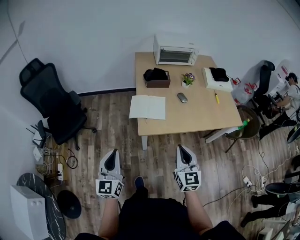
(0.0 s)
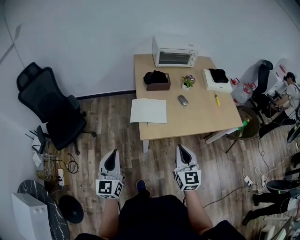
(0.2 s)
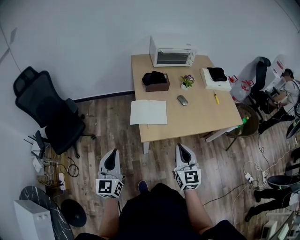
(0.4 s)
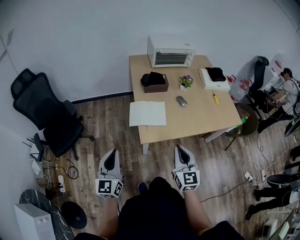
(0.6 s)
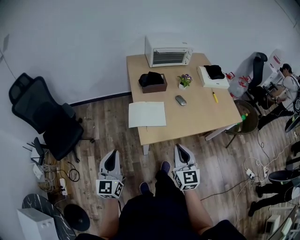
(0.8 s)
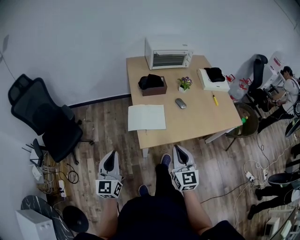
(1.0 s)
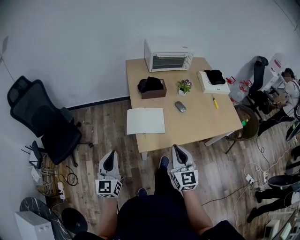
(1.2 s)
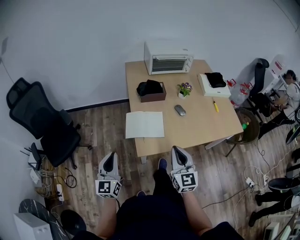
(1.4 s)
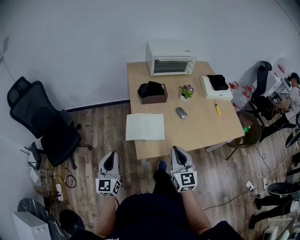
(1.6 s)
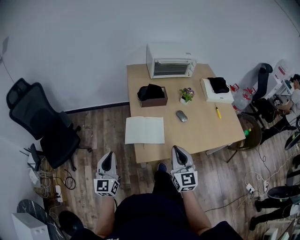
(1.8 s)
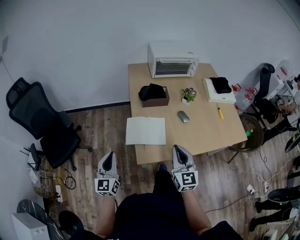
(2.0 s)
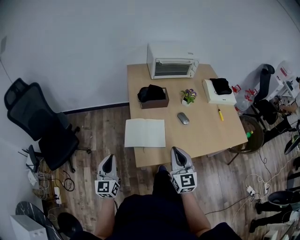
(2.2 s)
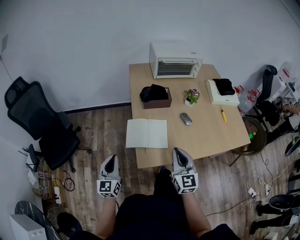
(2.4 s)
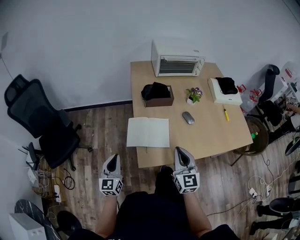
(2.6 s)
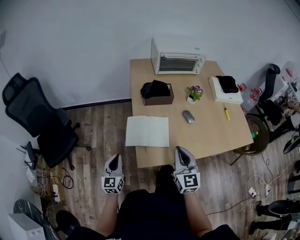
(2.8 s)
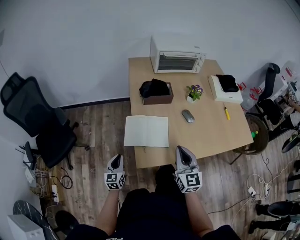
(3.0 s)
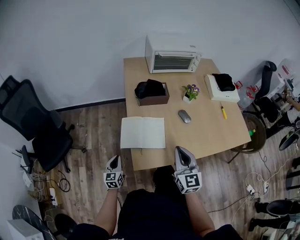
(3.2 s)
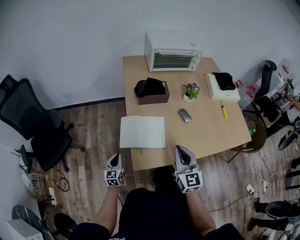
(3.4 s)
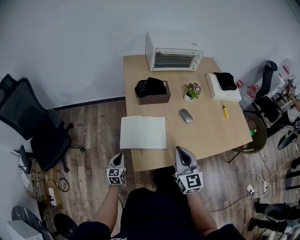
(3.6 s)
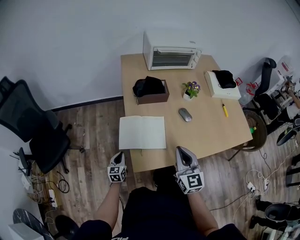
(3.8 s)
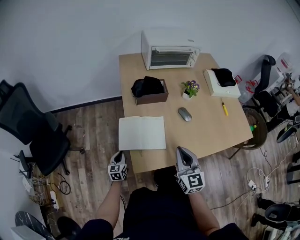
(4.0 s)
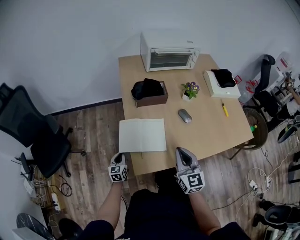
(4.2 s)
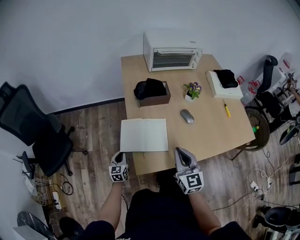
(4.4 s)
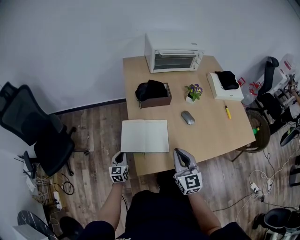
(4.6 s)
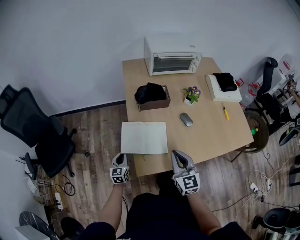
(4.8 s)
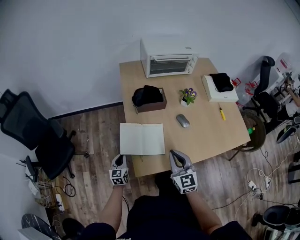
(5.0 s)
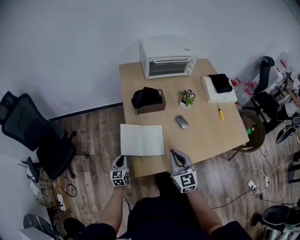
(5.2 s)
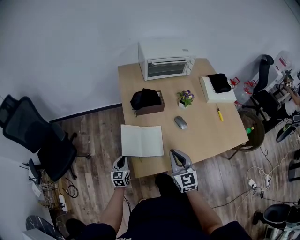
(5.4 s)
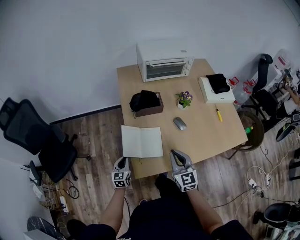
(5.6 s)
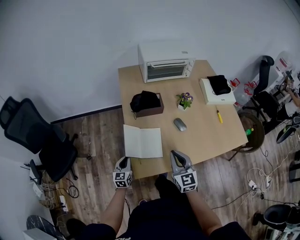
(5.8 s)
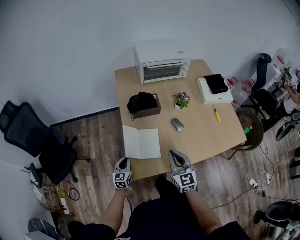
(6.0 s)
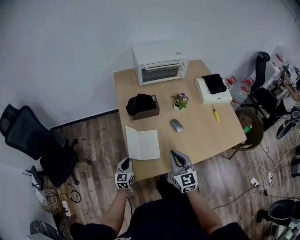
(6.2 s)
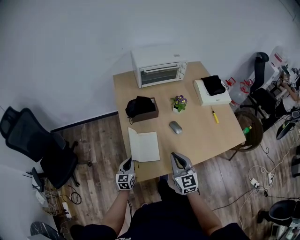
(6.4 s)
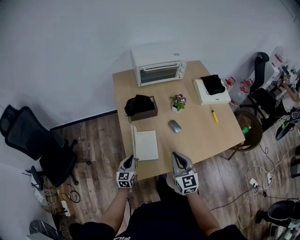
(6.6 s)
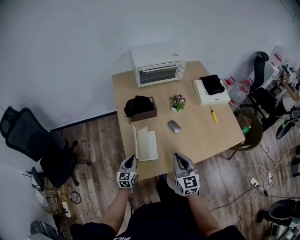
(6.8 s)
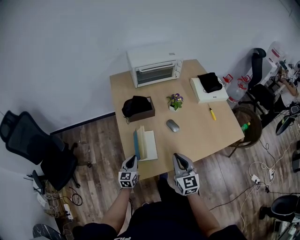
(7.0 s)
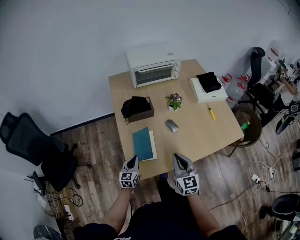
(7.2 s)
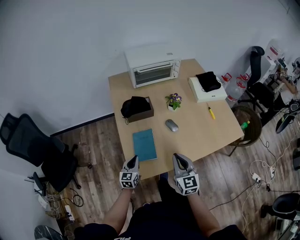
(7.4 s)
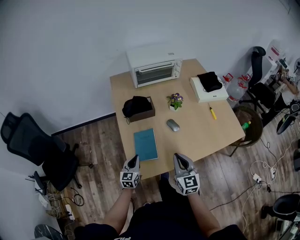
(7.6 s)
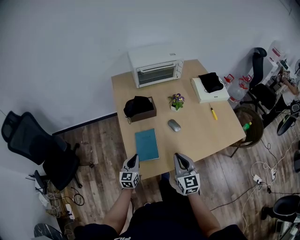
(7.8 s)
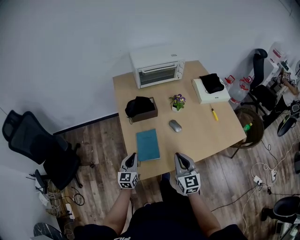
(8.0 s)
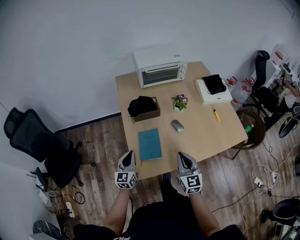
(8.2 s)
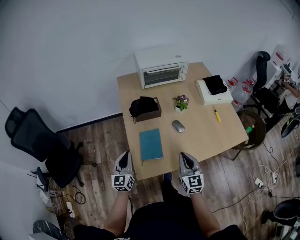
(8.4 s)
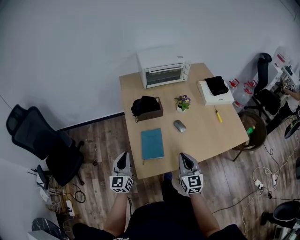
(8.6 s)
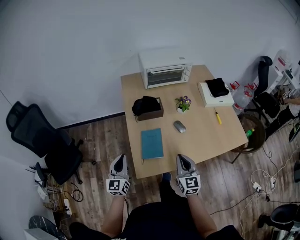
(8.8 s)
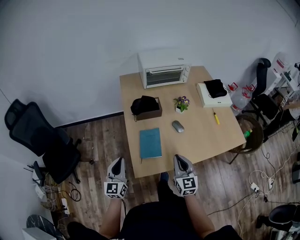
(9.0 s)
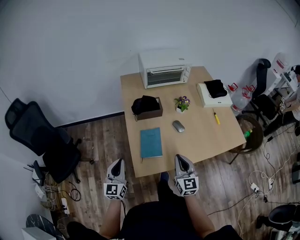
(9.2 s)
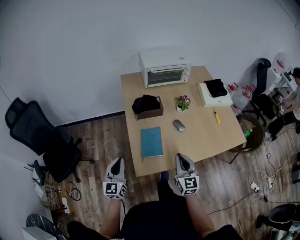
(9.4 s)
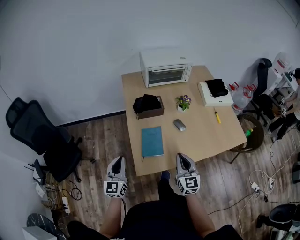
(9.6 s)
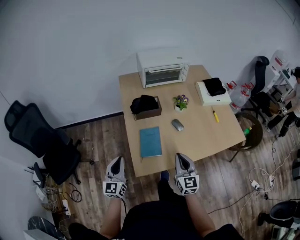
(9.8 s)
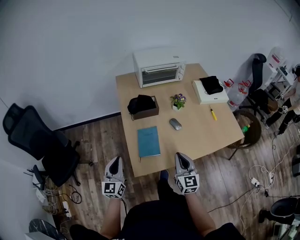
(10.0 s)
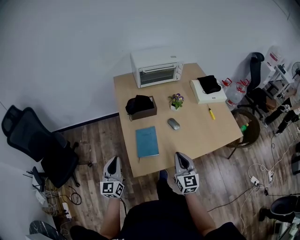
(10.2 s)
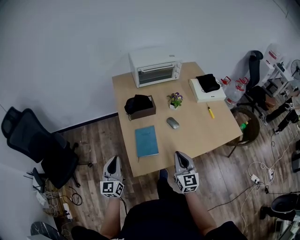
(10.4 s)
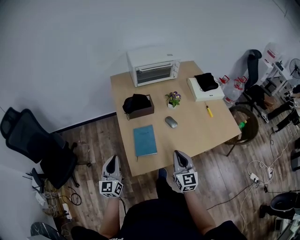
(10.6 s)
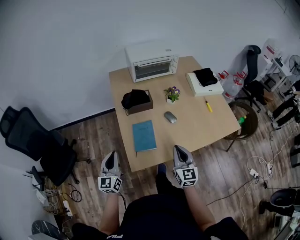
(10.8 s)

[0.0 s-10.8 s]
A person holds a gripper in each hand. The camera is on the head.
0.0 to 1.6 s: The grippers both shift forward by roughly 15 cm.
1.6 to 3.0 s: The right gripper goes about 10 cm forward and downward; the left gripper shifts about 25 cm downward.
3.0 to 4.6 s: The left gripper is displaced forward and downward by roughly 10 cm.
4.6 to 6.2 s: The left gripper travels upward and to the right by roughly 15 cm. Meanwhile the right gripper moves upward, some 5 cm.
6.2 to 7.8 s: The left gripper heads to the right, covering approximately 5 cm.
7.8 to 9.2 s: The left gripper heads upward, to the left and backward, covering about 20 cm.
9.2 to 10.8 s: The grippers stay close to where they were, moving slightly.

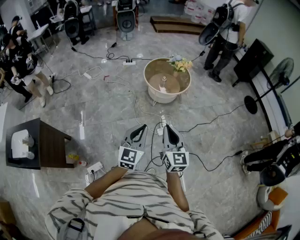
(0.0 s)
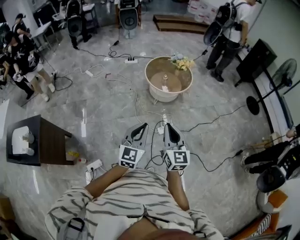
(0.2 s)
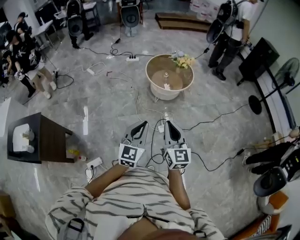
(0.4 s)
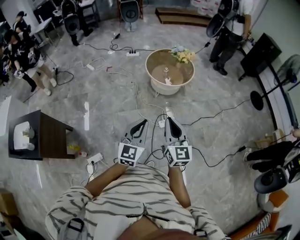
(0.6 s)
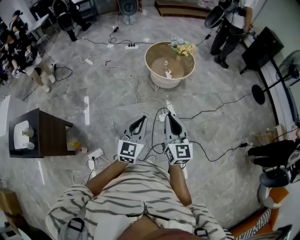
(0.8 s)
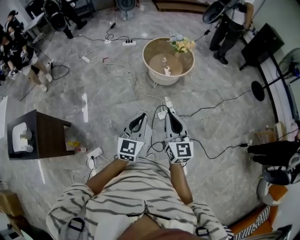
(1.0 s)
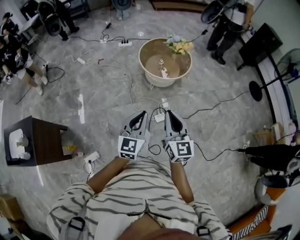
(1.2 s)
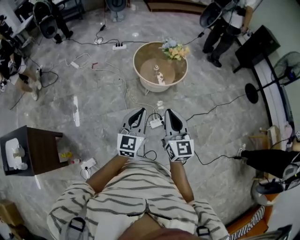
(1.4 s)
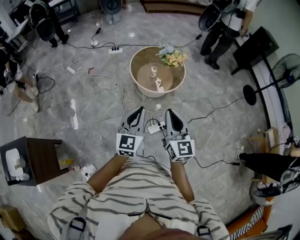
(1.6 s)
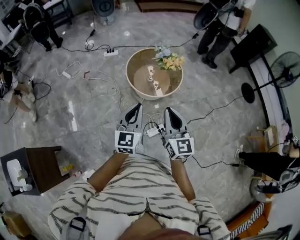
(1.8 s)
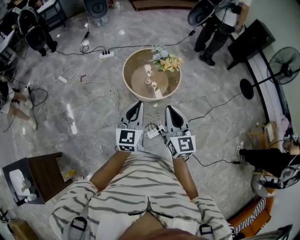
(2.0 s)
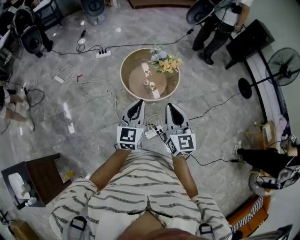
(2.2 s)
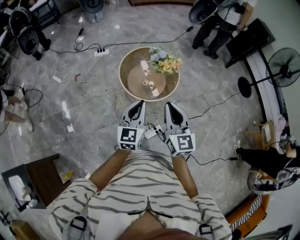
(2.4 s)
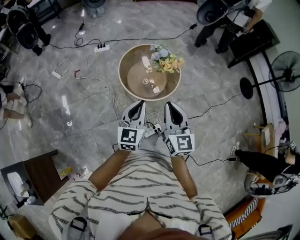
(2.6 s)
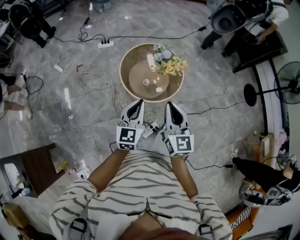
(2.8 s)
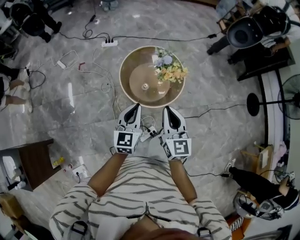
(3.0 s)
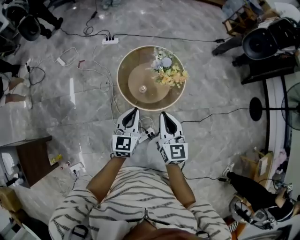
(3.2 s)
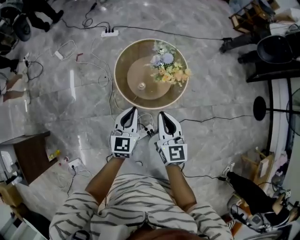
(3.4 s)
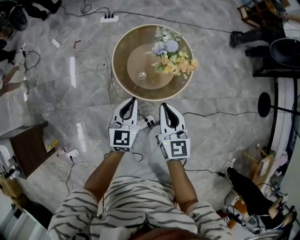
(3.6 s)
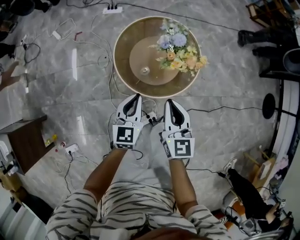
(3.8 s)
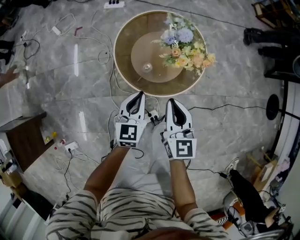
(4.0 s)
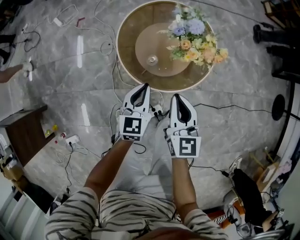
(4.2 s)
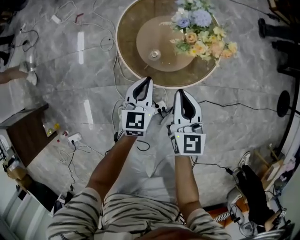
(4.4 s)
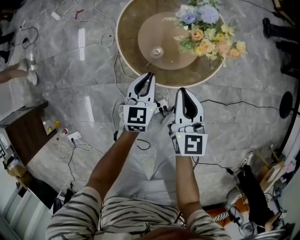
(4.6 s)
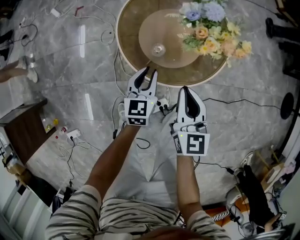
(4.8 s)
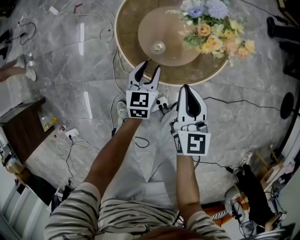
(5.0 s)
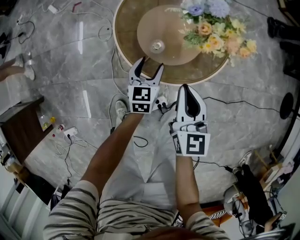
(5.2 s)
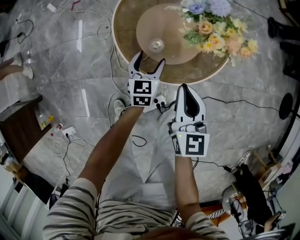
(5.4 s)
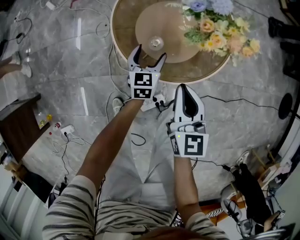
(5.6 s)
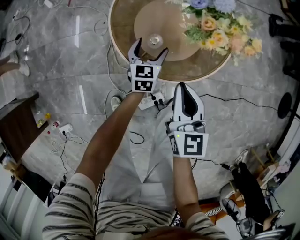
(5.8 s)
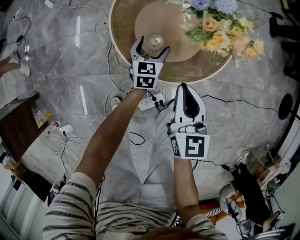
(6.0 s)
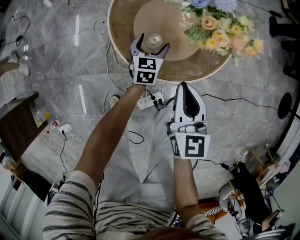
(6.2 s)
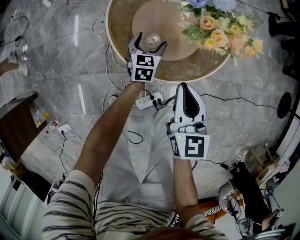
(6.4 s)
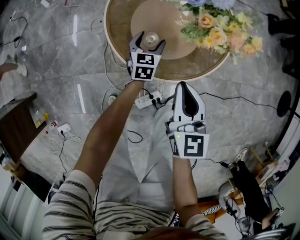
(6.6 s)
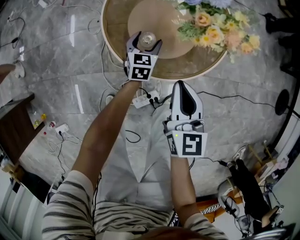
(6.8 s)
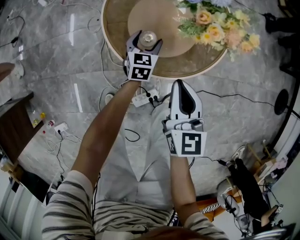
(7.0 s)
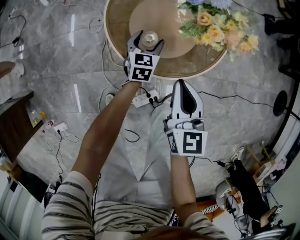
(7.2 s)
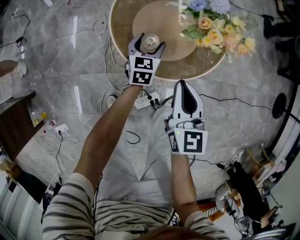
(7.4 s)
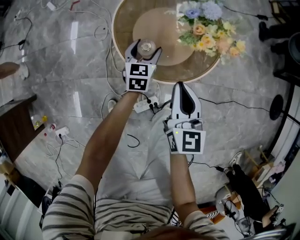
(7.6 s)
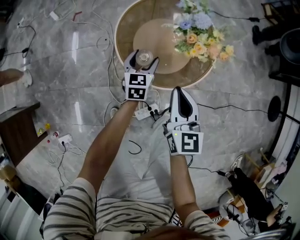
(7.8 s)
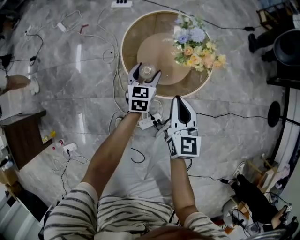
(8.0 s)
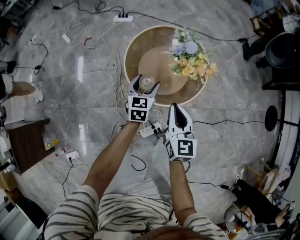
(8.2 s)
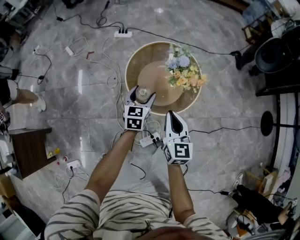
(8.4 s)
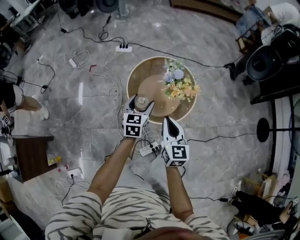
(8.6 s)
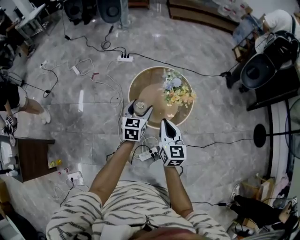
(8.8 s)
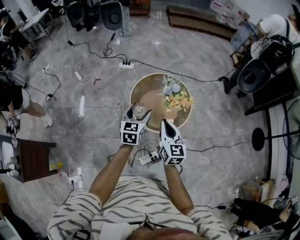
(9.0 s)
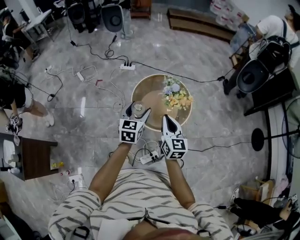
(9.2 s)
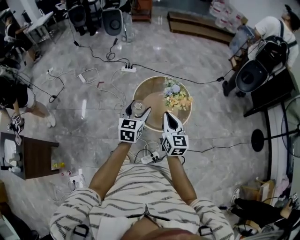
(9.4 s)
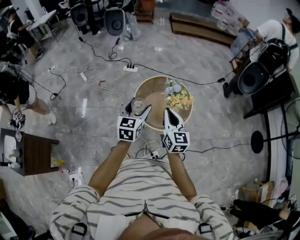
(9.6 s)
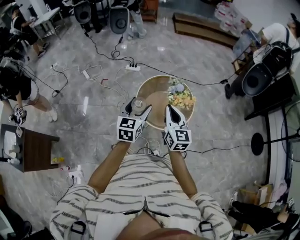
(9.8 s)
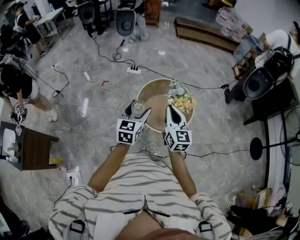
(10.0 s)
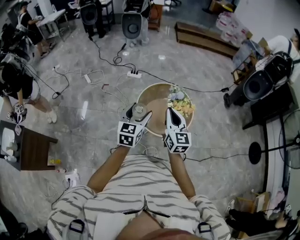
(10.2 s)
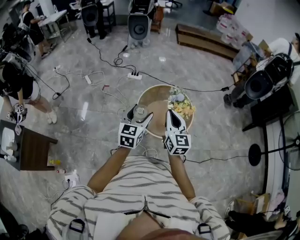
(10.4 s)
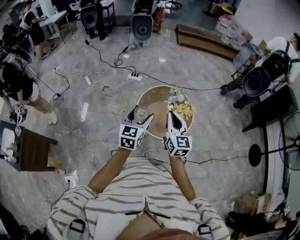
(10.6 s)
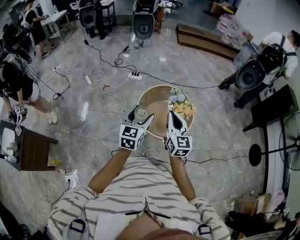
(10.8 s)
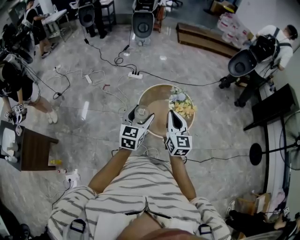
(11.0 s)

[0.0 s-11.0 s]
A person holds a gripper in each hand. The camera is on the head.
0.0 to 1.6 s: The two grippers go about 25 cm forward.
1.6 to 3.2 s: The two grippers go about 30 cm forward.
3.2 to 4.8 s: The grippers both shift downward by roughly 30 cm.
4.8 to 6.2 s: The left gripper heads downward and forward, covering about 15 cm, and opens.
6.2 to 7.8 s: The right gripper travels upward by about 10 cm, while the left gripper moves upward, about 15 cm.
7.8 to 9.4 s: The right gripper goes approximately 30 cm upward. The left gripper goes about 40 cm upward.
9.4 to 11.0 s: The left gripper shifts by roughly 5 cm, while the right gripper heads upward, covering approximately 5 cm.

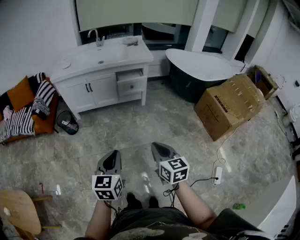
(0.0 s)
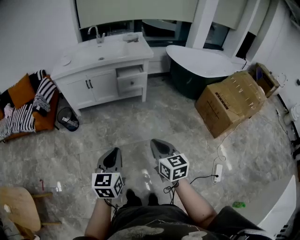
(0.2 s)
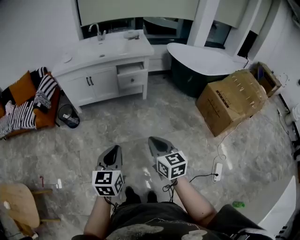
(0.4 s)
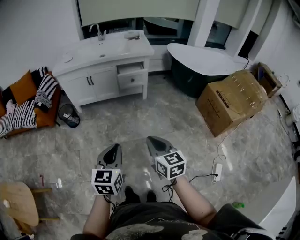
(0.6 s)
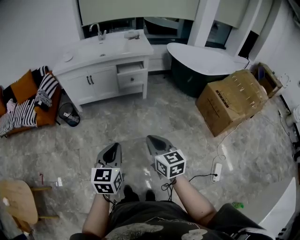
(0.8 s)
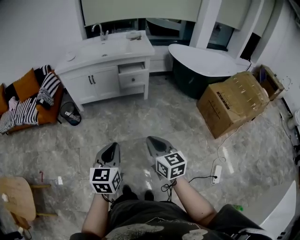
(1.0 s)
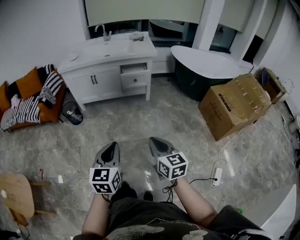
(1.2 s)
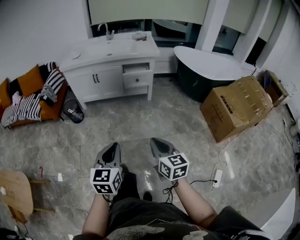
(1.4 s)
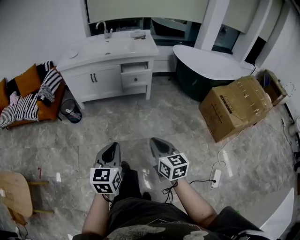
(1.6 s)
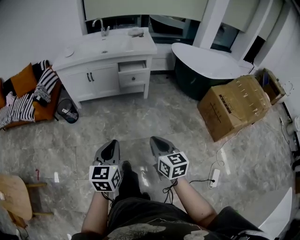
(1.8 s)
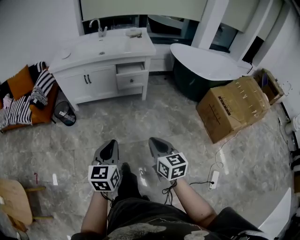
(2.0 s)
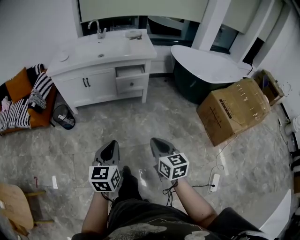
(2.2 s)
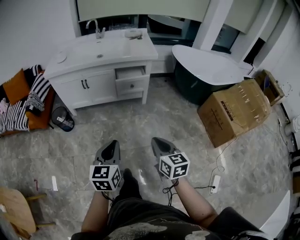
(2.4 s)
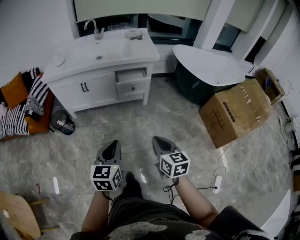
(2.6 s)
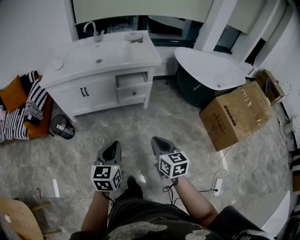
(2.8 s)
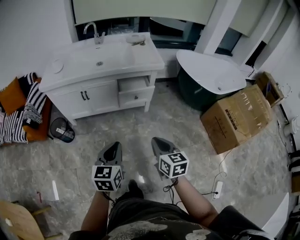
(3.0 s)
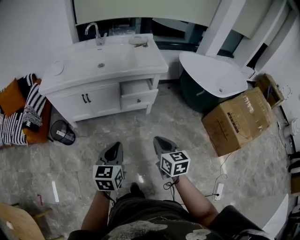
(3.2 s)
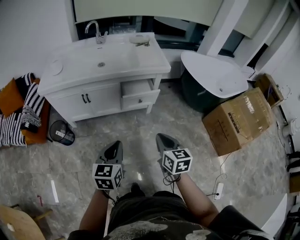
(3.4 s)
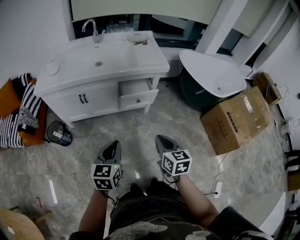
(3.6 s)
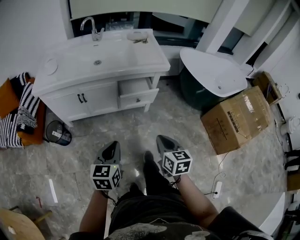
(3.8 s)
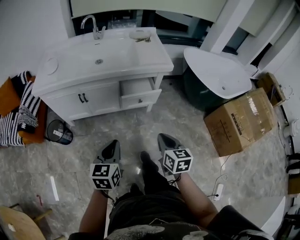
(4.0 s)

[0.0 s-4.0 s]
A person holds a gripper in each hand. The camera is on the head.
0.0 to 1.4 s: The right gripper ends up some 5 cm from where it was, while the left gripper moves approximately 5 cm.
1.4 to 2.6 s: The grippers both shift forward by some 25 cm.
2.6 to 4.0 s: The grippers both shift forward by about 20 cm.
